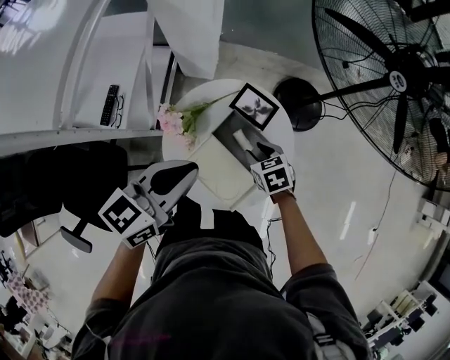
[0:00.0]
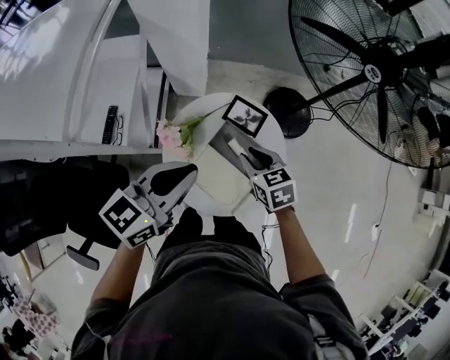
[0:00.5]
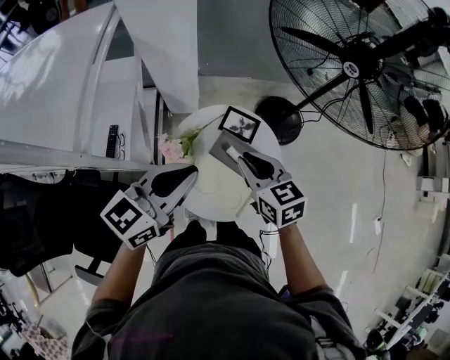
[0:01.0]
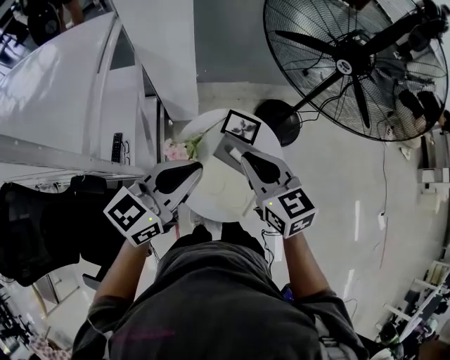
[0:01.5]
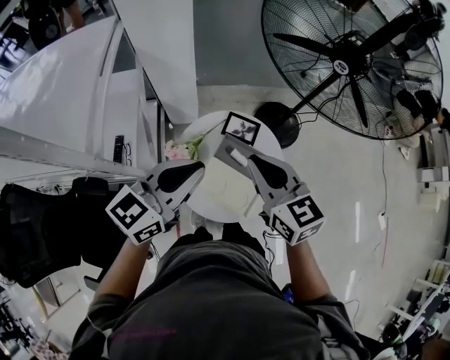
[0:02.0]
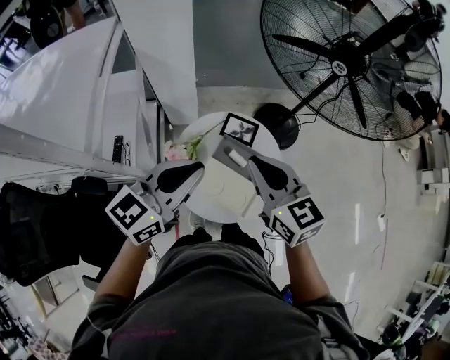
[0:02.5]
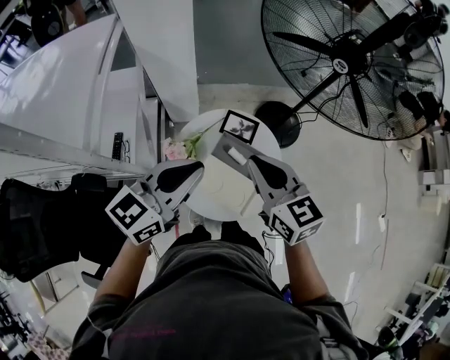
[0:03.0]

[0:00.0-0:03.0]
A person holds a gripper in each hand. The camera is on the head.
0:00.0 to 0:01.5: The right gripper heads upward, covering roughly 30 cm, tips its fingers upward by roughly 40 degrees, and closes; the left gripper goes approximately 10 cm upward.
0:01.5 to 0:03.0: The grippers move only a little.

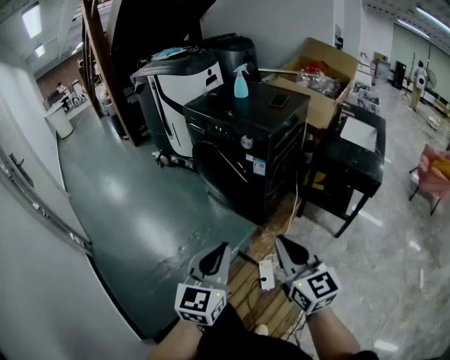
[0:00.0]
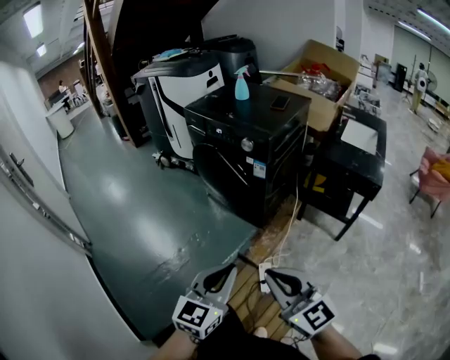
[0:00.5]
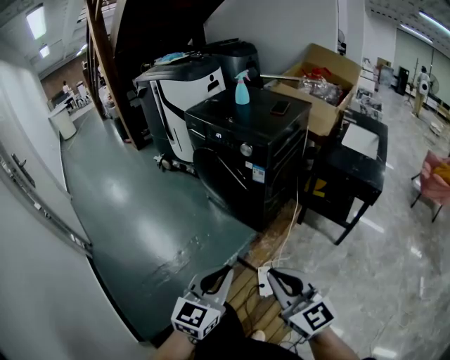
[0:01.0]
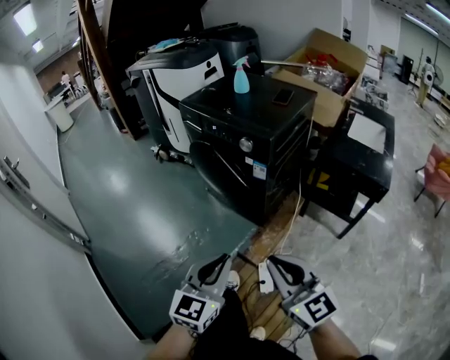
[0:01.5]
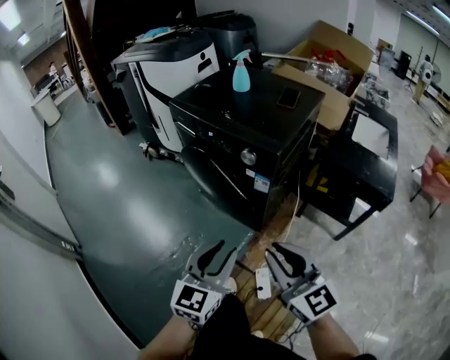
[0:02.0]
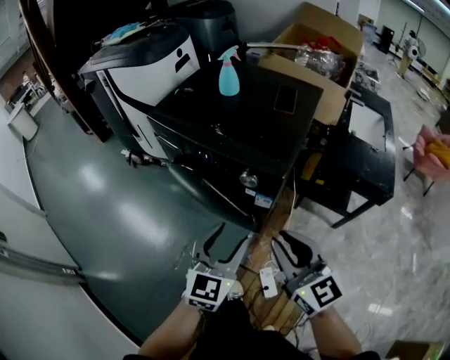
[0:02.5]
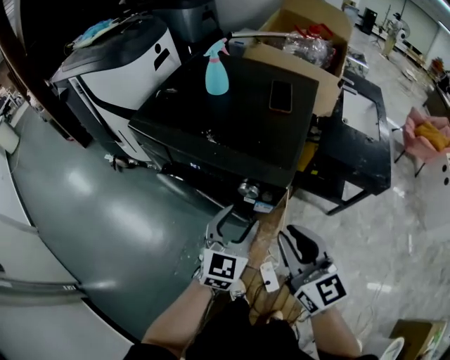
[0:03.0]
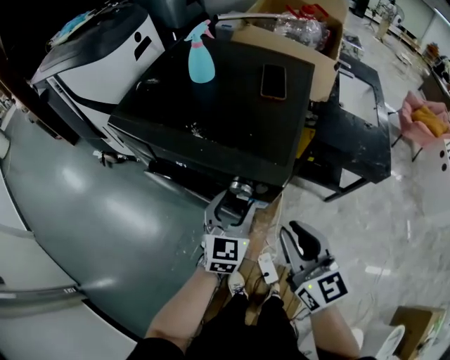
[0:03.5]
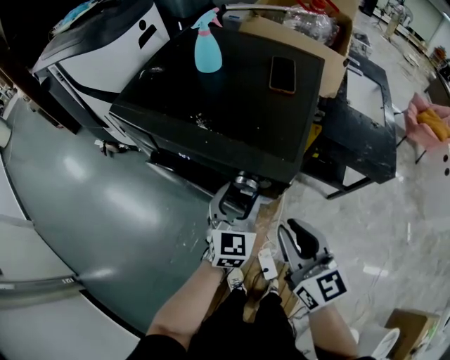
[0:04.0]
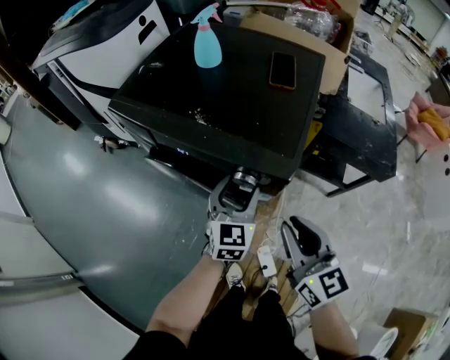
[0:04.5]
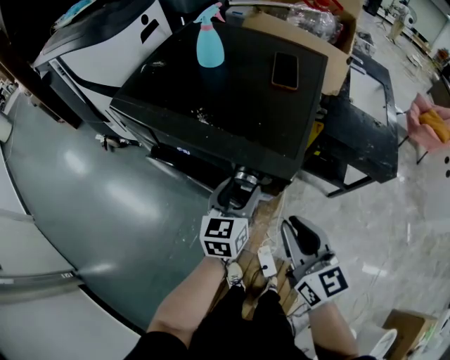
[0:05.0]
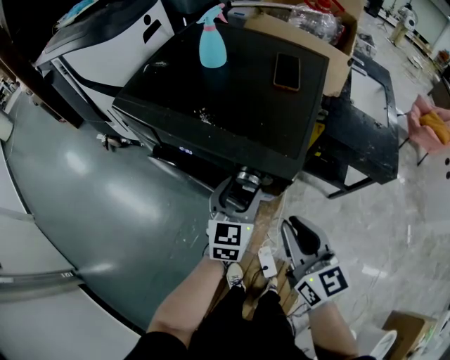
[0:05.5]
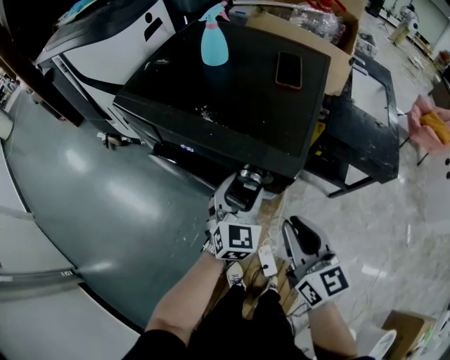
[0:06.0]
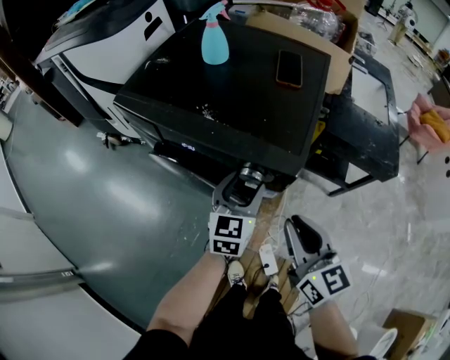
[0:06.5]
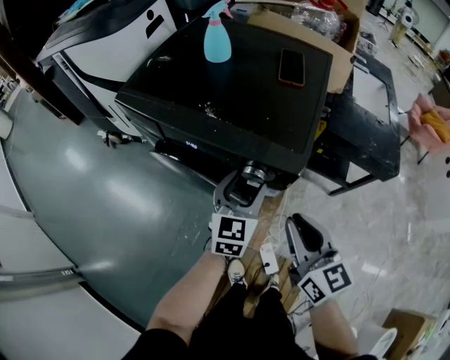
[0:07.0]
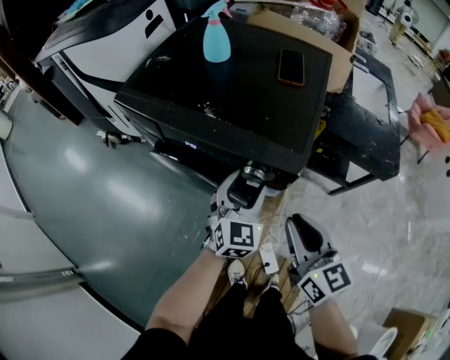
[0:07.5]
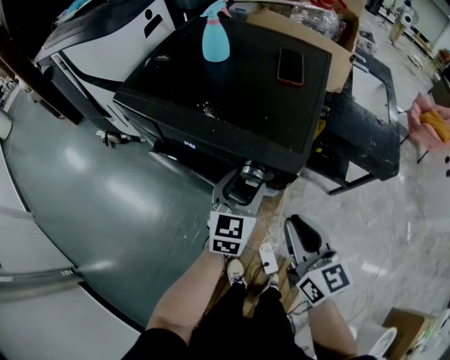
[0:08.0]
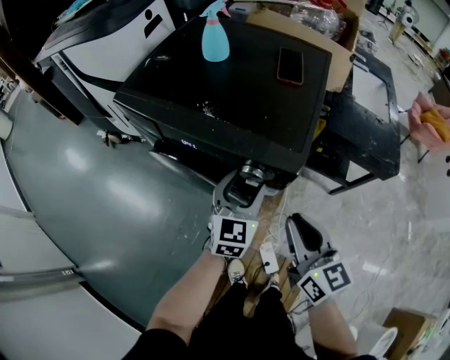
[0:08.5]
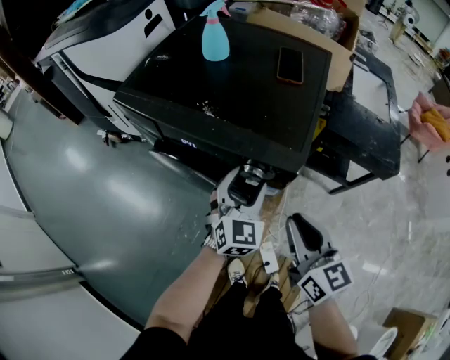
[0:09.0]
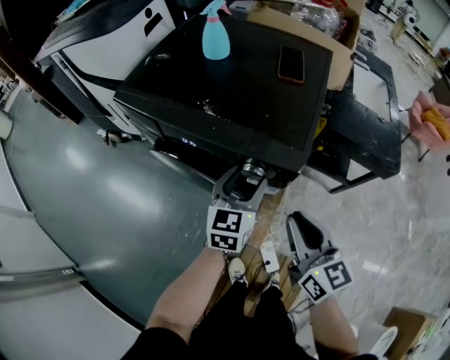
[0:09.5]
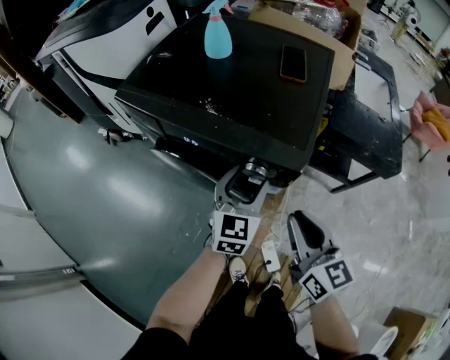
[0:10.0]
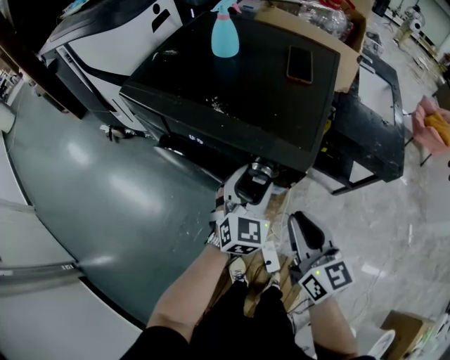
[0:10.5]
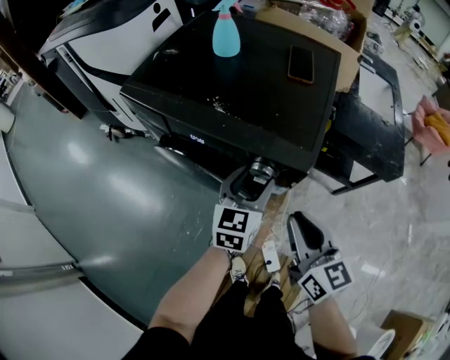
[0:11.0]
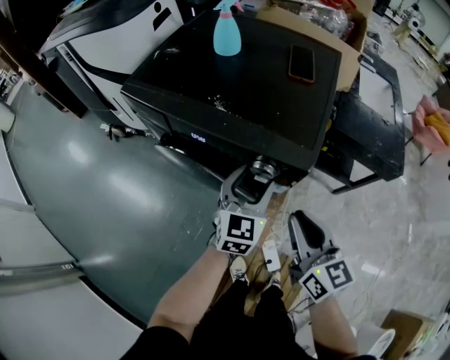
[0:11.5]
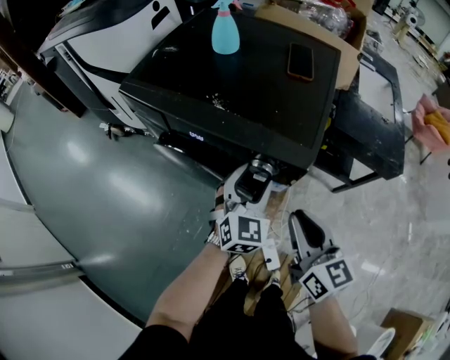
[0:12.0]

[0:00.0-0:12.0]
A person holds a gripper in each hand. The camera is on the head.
0:00.0 to 0:02.0: Both grippers move forward, about 20 cm. The left gripper opens its fingers.
0:02.0 to 0:04.0: The grippers both shift forward by roughly 30 cm. The right gripper rotates approximately 20 degrees. The left gripper opens.
0:10.0 to 0:12.0: There are only small adjustments of the grippers.

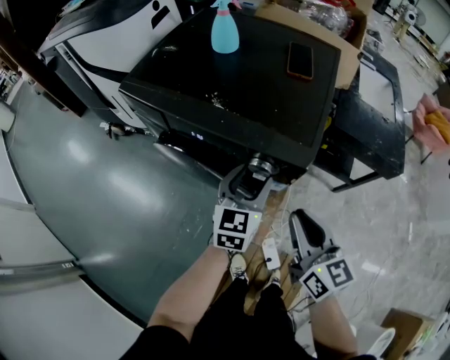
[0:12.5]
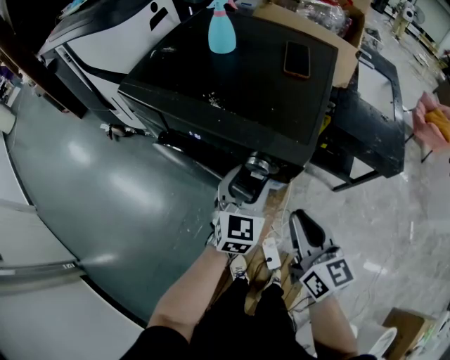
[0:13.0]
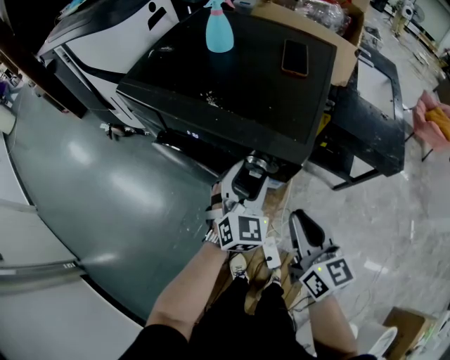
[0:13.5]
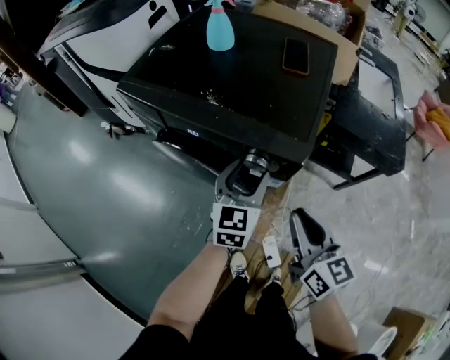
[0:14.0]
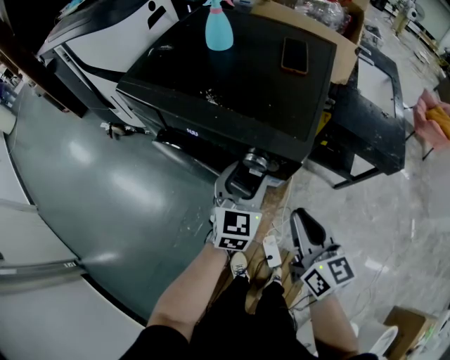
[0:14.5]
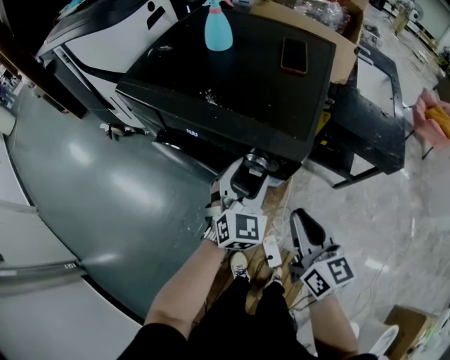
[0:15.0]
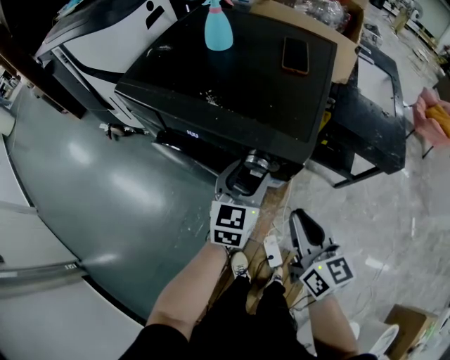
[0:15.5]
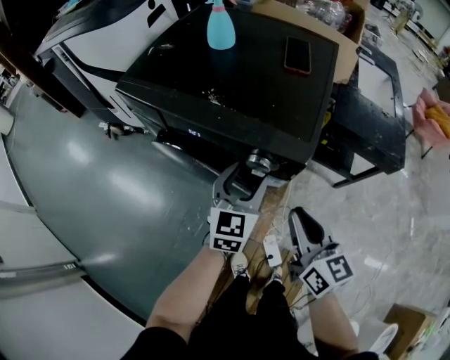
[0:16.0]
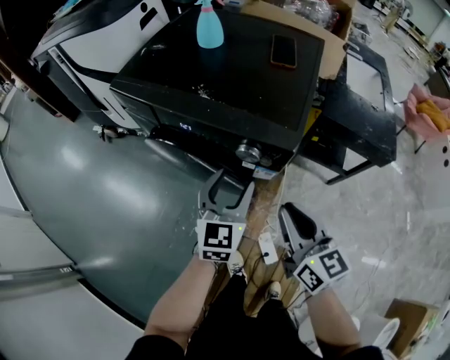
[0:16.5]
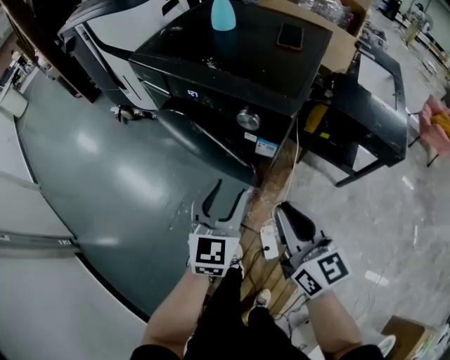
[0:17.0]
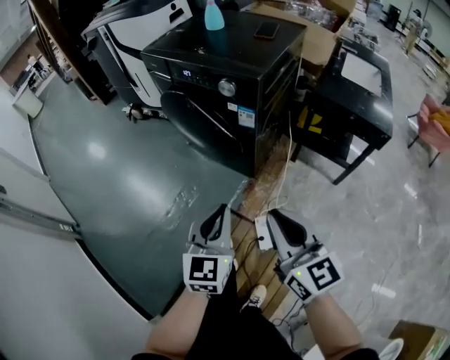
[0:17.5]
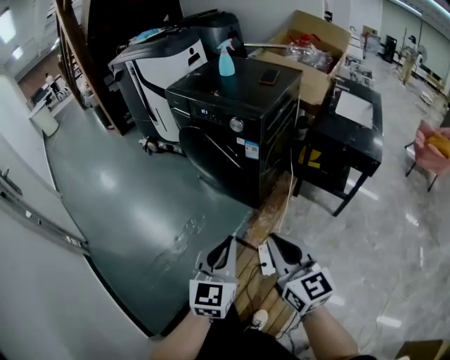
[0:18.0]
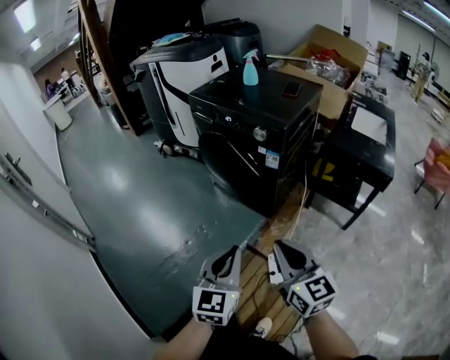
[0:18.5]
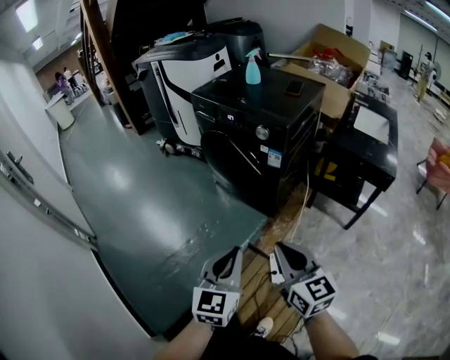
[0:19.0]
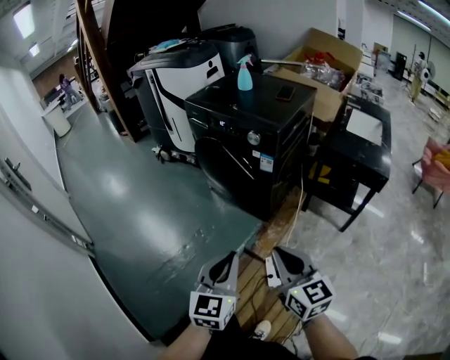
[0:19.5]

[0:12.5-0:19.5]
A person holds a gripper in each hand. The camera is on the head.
0:14.5 to 0:16.0: The grippers stay close to where they were, moving slightly.
0:16.0 to 0:17.5: Both grippers travel together backward, some 35 cm. The left gripper closes. Meanwhile the right gripper swivels approximately 20 degrees.
0:17.5 to 0:19.5: The right gripper moves backward, roughly 10 cm. The left gripper is displaced backward and upward by roughly 15 cm.

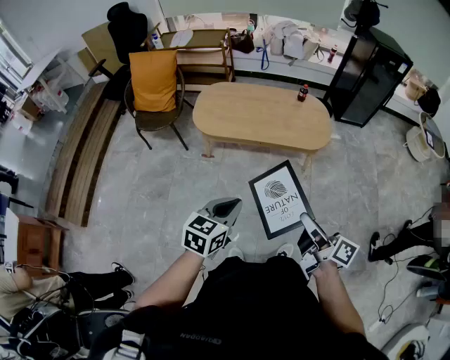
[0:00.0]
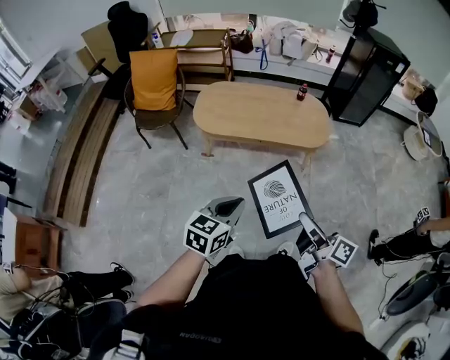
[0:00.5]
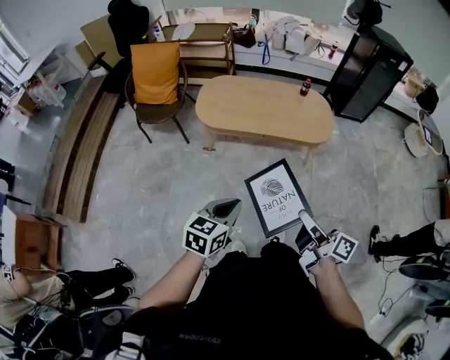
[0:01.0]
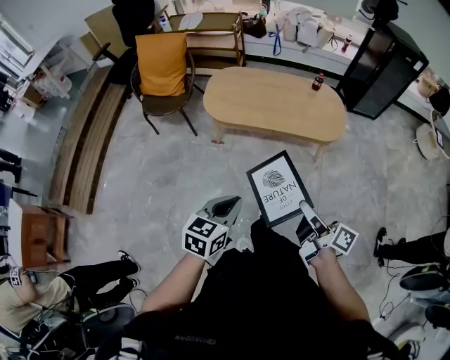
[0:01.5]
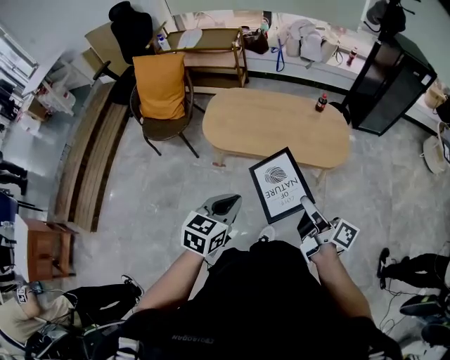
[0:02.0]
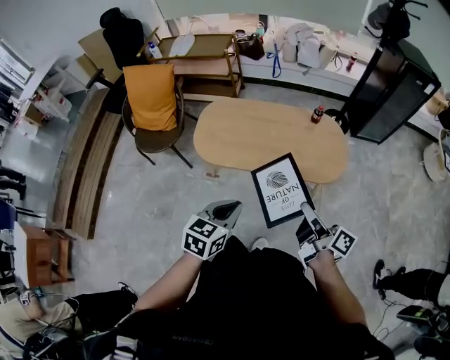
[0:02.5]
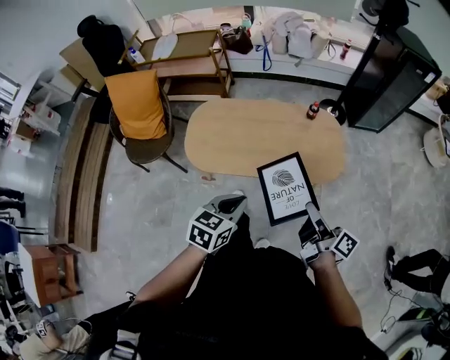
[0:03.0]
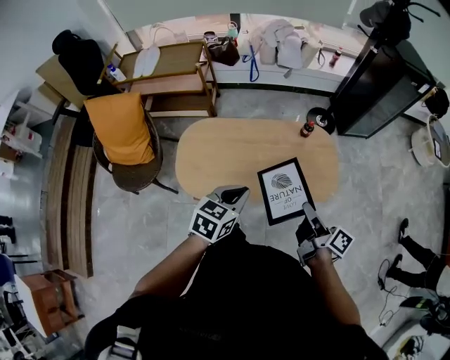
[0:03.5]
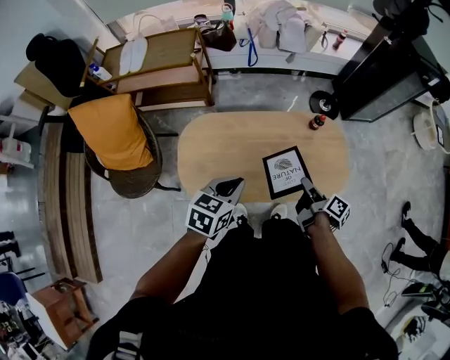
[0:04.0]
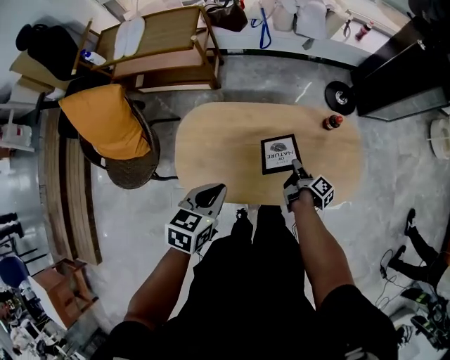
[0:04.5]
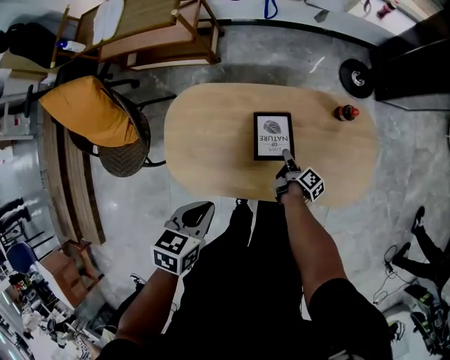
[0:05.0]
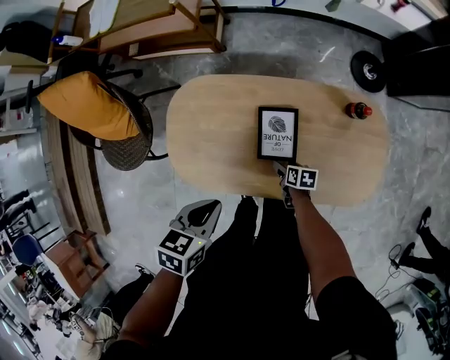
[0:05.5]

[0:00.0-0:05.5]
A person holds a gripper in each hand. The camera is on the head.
0:00.0 to 0:02.0: Both grippers move forward, approximately 15 cm.
0:02.0 to 0:03.5: Both grippers travel together forward, some 30 cm.
0:03.5 to 0:05.5: The left gripper moves downward, forward and to the left, approximately 25 cm, and turns by approximately 30 degrees. The right gripper shifts roughly 50 cm downward and forward, angles its fingers downward, by approximately 50 degrees, and opens.
